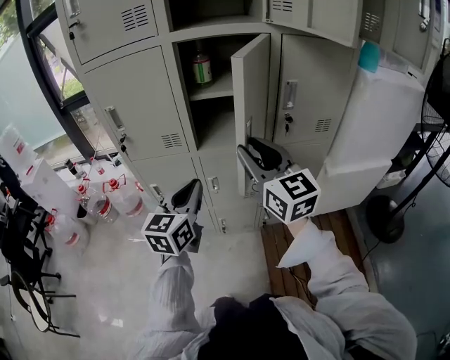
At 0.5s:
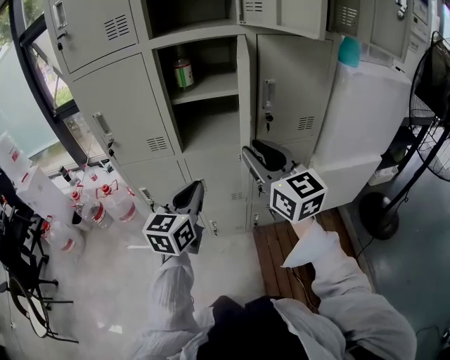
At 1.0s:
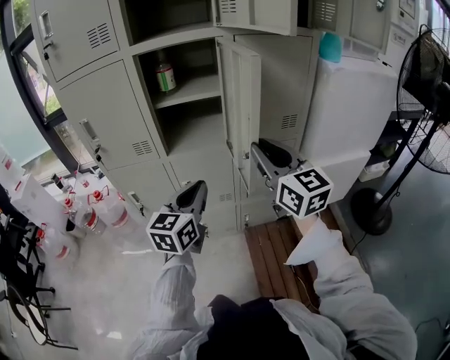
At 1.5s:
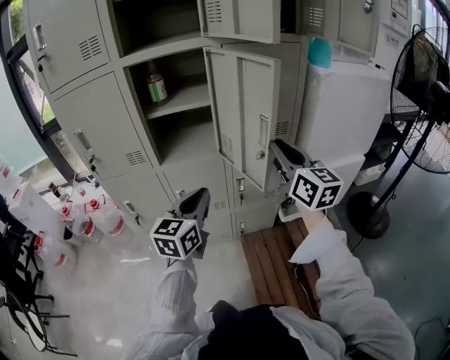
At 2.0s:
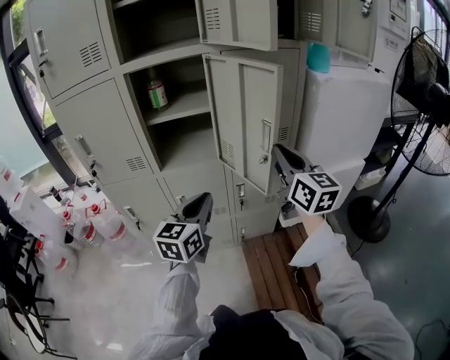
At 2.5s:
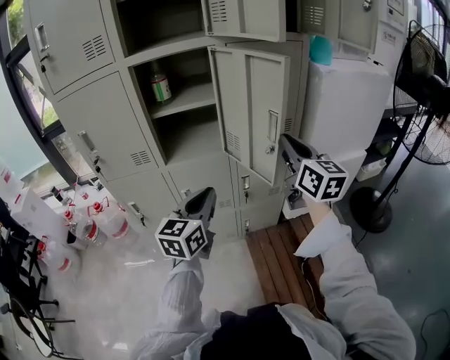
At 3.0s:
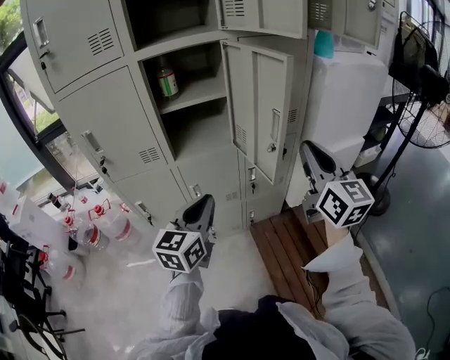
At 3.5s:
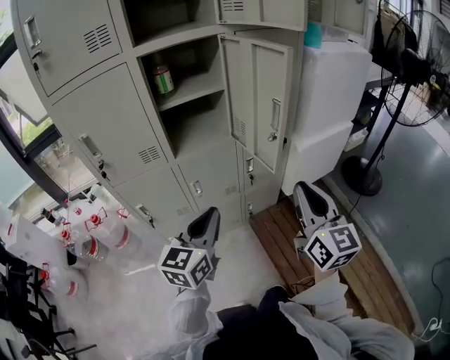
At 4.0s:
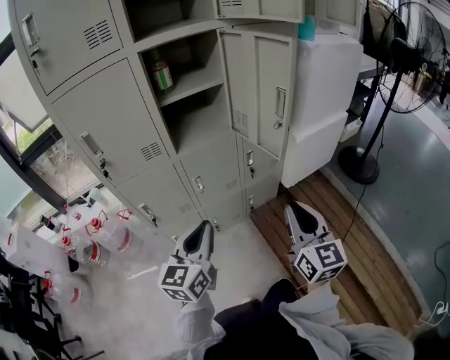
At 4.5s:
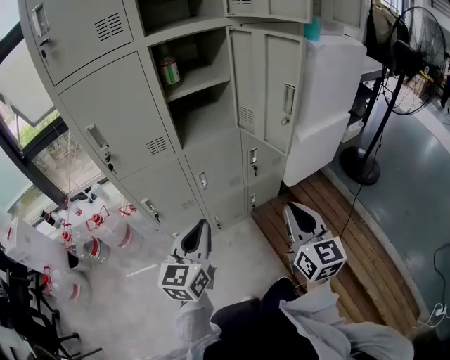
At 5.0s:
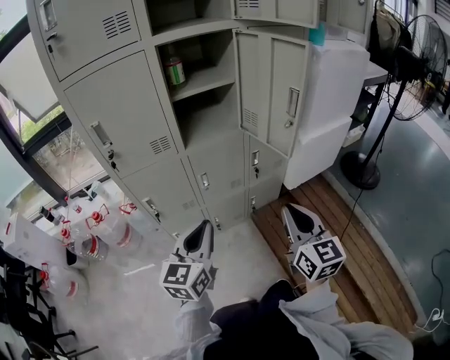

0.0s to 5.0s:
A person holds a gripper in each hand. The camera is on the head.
0.0s to 2.5s: The left gripper travels to the right by about 15 cm. The right gripper shifts roughly 20 cm to the right, changes its angle by roughly 20 degrees, and closes its fingers.
2.5s to 5.0s: The left gripper heads backward and to the left, covering roughly 20 cm, while the right gripper is displaced backward, to the left and downward by approximately 30 cm.

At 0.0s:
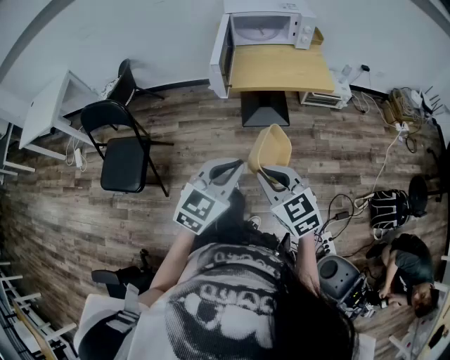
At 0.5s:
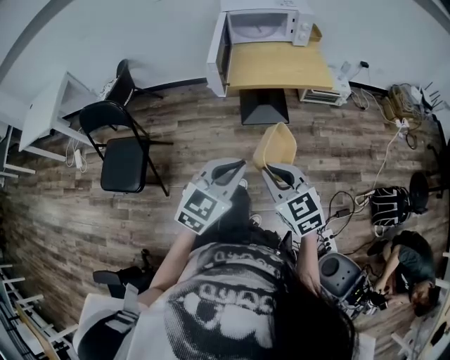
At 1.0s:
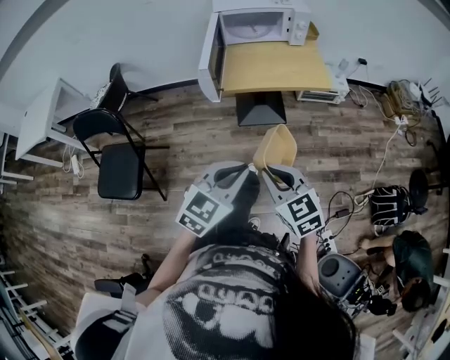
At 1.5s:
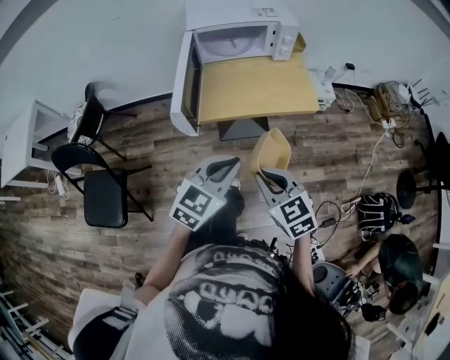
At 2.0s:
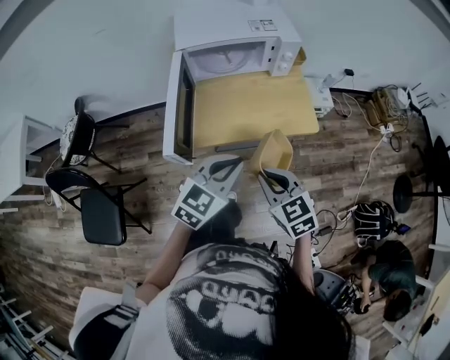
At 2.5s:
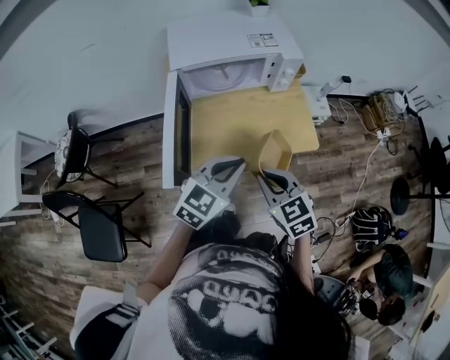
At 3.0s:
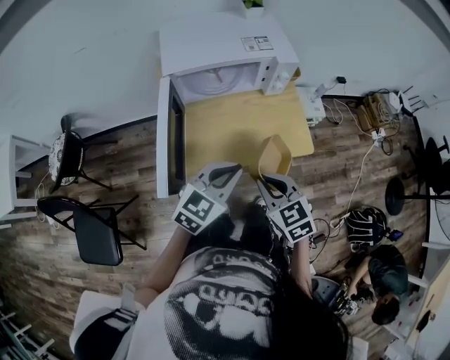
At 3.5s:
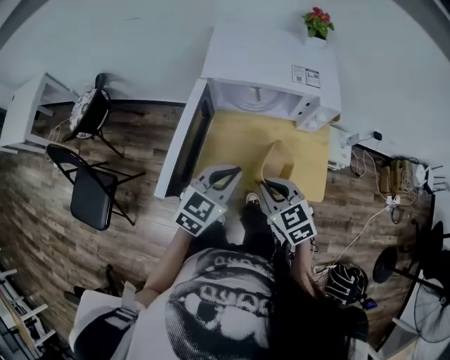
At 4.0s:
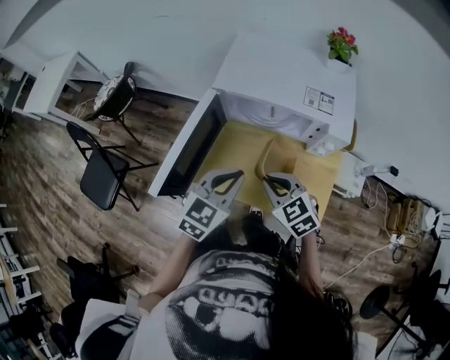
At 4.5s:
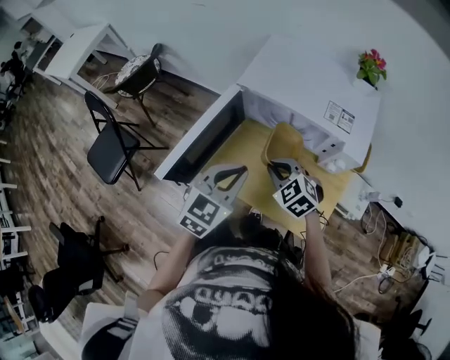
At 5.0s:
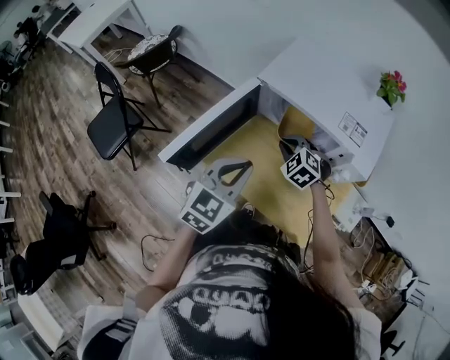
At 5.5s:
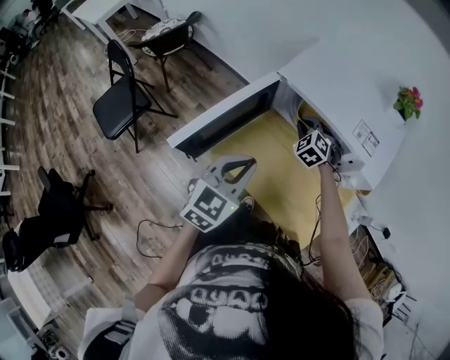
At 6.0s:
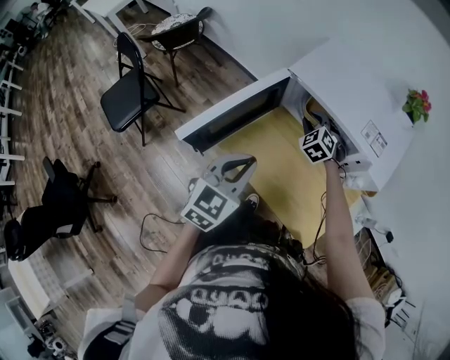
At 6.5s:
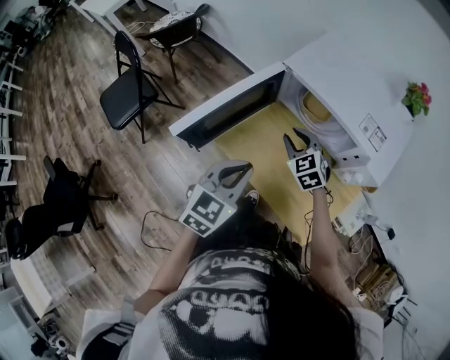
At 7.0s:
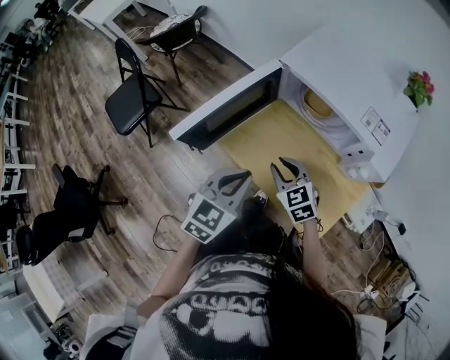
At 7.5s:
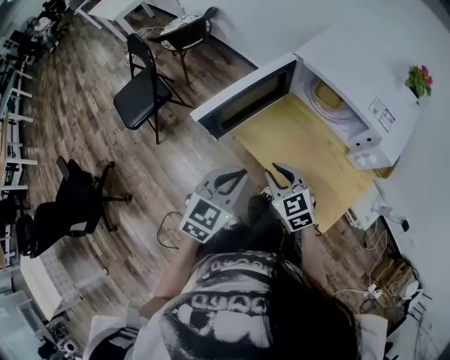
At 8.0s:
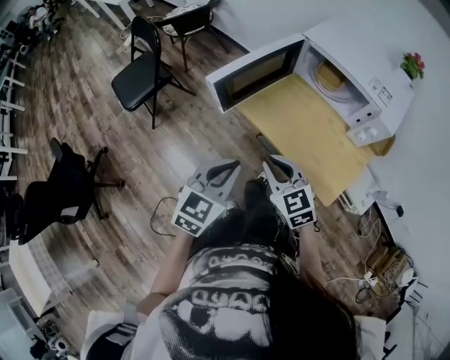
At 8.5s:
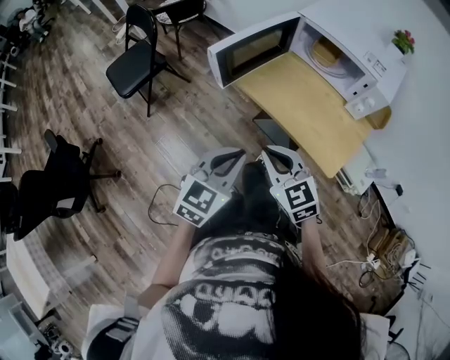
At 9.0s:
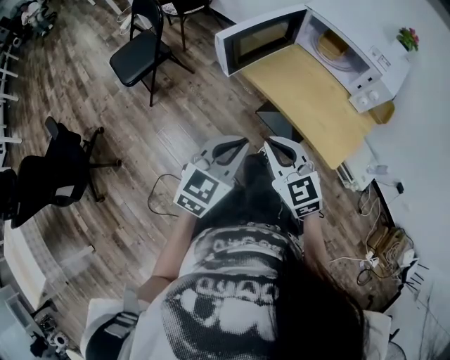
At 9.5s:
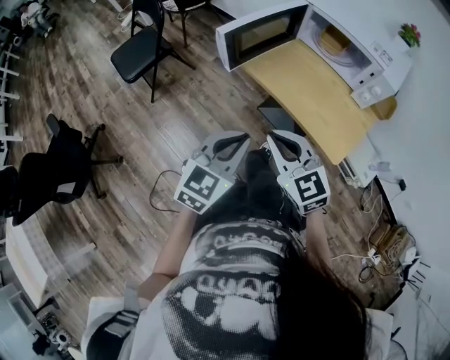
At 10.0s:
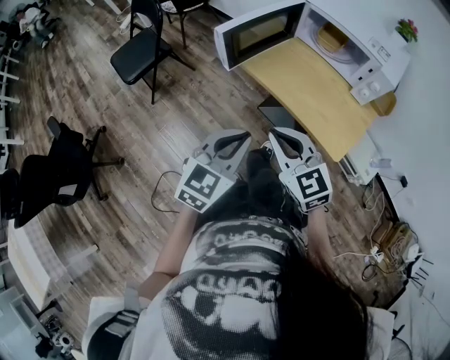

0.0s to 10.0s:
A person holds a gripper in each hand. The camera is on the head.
0.0s to 2.0s: Both grippers travel together forward, roughly 35 cm.
2.0s to 4.0s: The right gripper ends up roughly 25 cm from where it was, and swivels some 30 degrees, while the left gripper shifts by about 20 cm, and rotates approximately 30 degrees.
4.0s to 6.0s: The left gripper moves to the left, approximately 5 cm, and swivels about 20 degrees. The right gripper goes some 20 cm forward, and turns by some 40 degrees.
6.0s to 8.0s: The left gripper travels backward and to the left by roughly 20 cm. The right gripper moves backward and to the left, approximately 40 cm, and turns by roughly 40 degrees.
8.0s to 10.0s: The right gripper heads backward and upward, covering approximately 10 cm; the left gripper heads backward, covering some 10 cm.

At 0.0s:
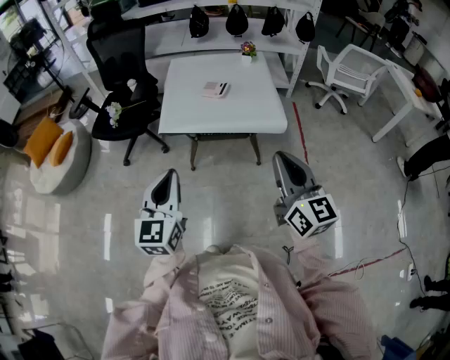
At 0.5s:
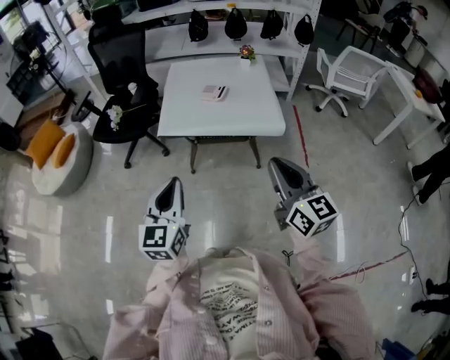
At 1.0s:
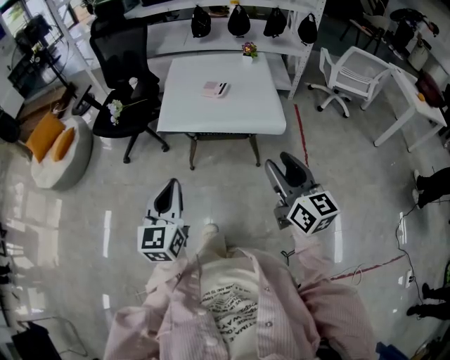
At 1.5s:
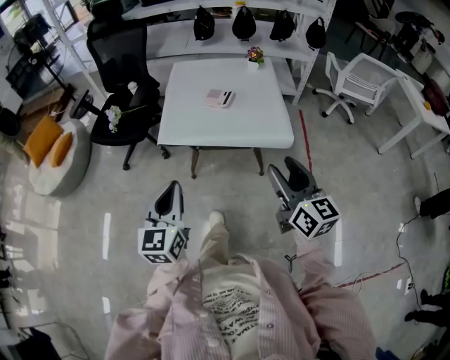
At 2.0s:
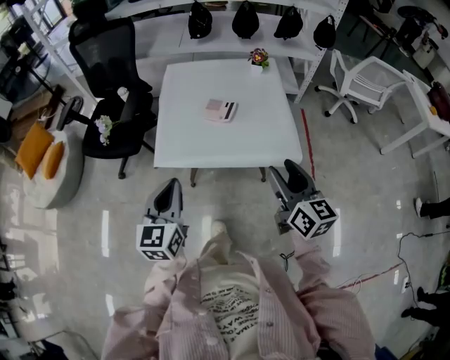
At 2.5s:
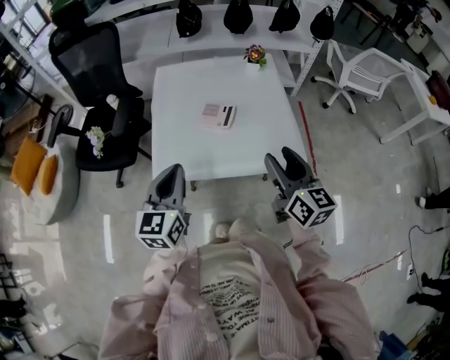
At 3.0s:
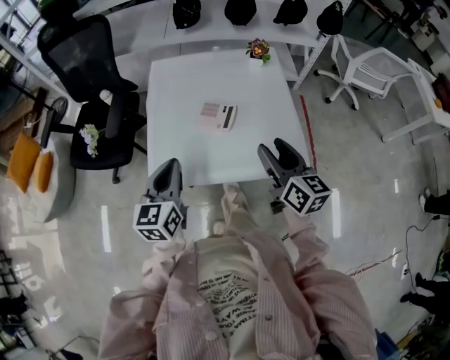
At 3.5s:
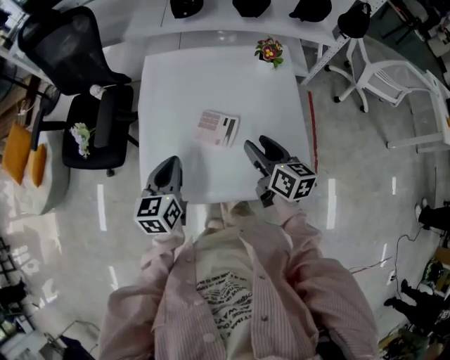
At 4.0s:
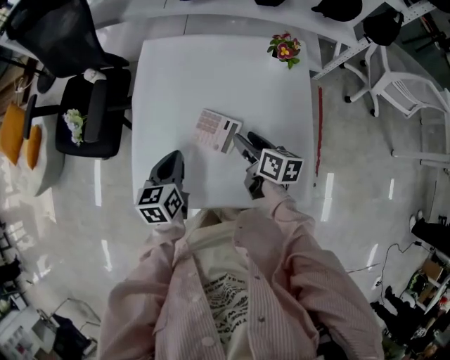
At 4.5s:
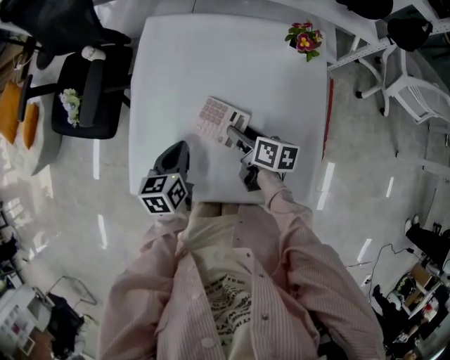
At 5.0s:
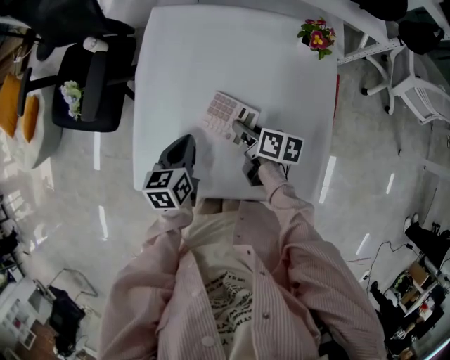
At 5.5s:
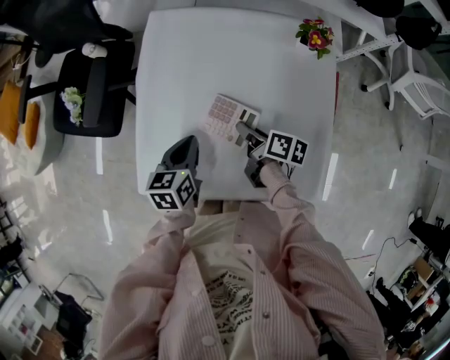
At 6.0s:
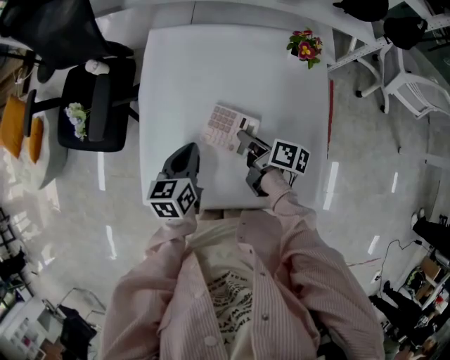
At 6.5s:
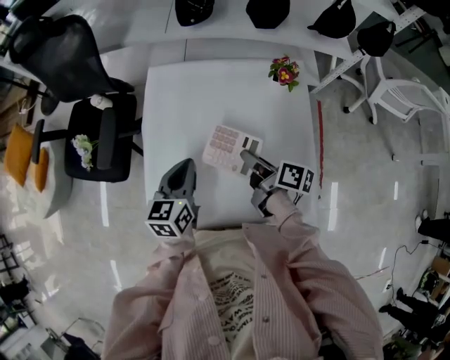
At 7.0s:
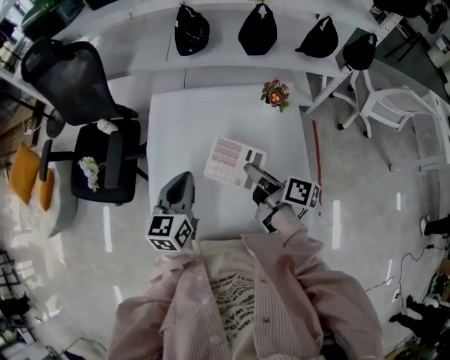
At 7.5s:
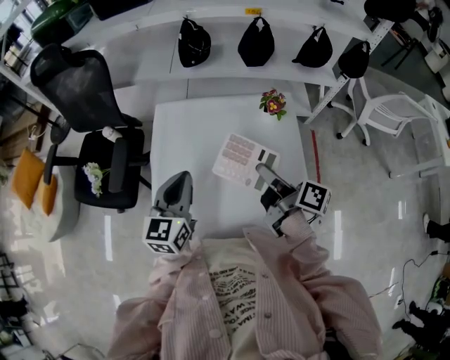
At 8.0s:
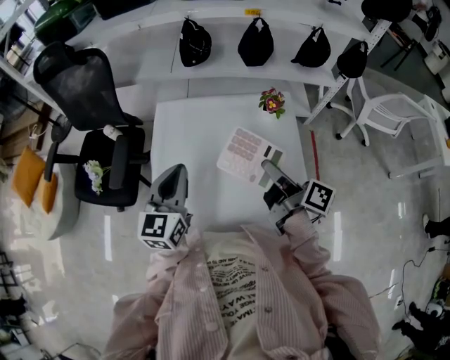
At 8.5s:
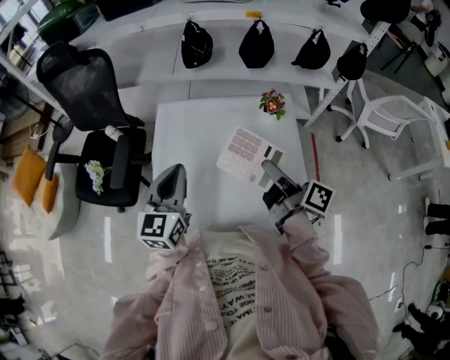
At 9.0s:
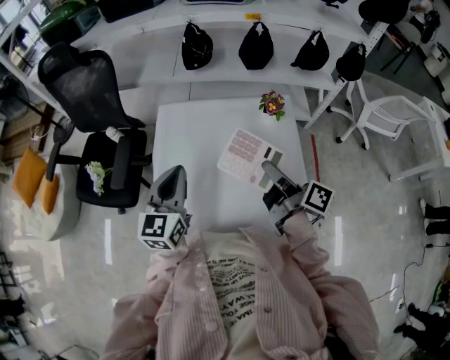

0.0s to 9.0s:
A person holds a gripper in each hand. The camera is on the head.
0.0s to 2.0s: Both grippers move forward, about 20 cm. The right gripper opens up.
2.0s to 4.5s: The grippers both shift forward and downward by some 40 cm. The left gripper swivels about 30 degrees. Meanwhile the right gripper rotates approximately 50 degrees.
4.5s to 7.0s: Both grippers travel together upward, roughly 15 cm. The left gripper swivels approximately 30 degrees, while the right gripper changes its angle by some 30 degrees, and closes its fingers.
7.0s to 9.0s: The grippers both shift upward by roughly 10 cm.

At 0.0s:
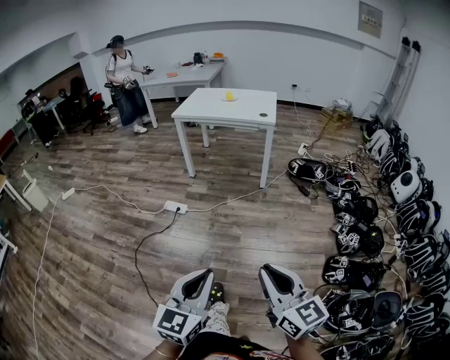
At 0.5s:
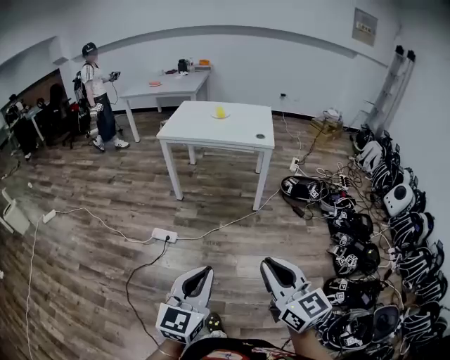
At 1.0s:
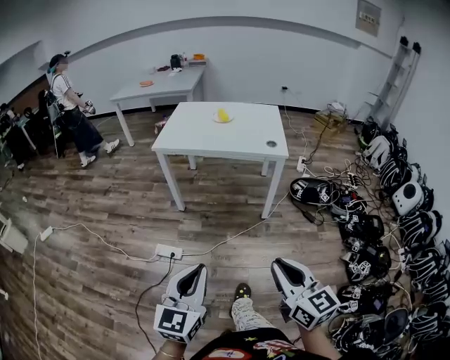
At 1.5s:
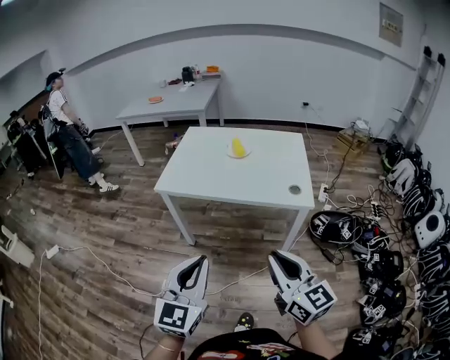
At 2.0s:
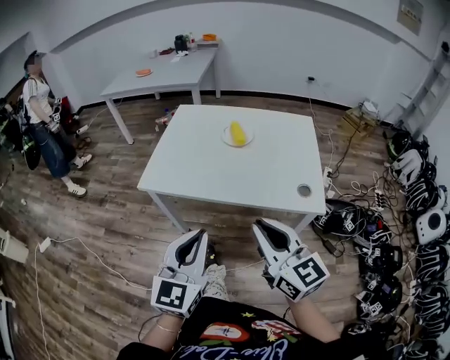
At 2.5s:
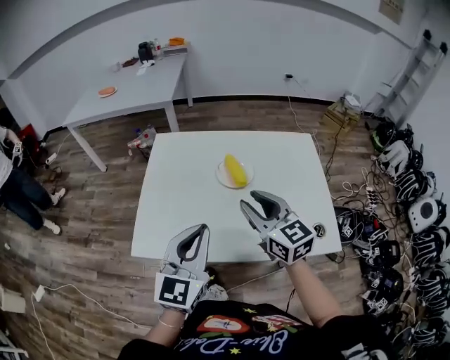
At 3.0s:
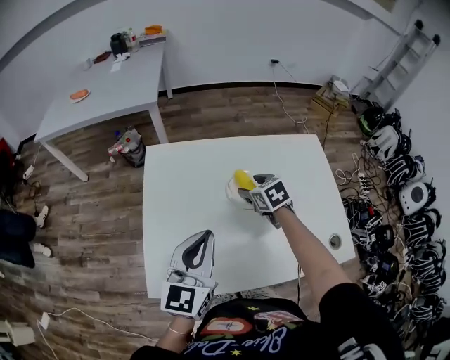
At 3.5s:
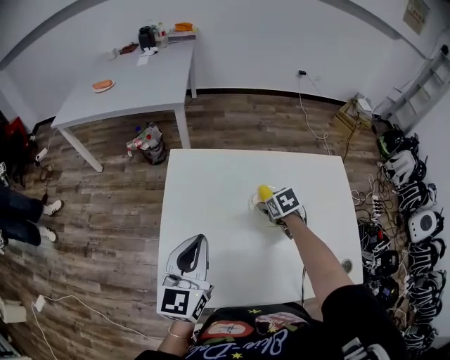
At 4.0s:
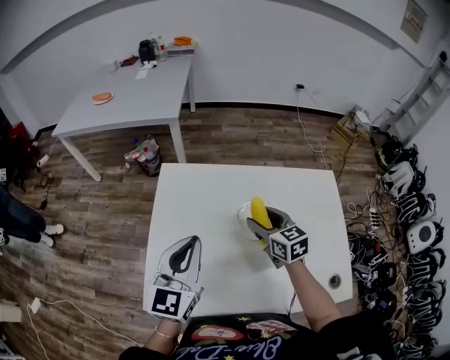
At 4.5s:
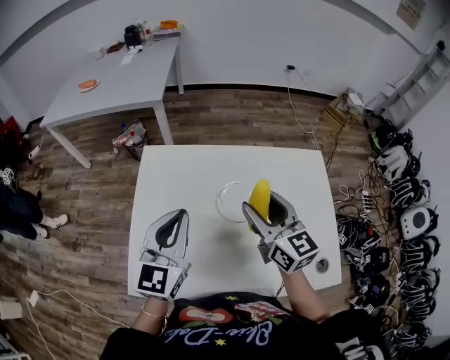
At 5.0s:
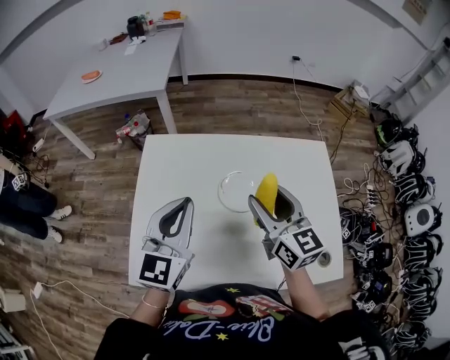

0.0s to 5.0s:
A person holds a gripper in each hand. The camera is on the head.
0.0s to 2.5s: The two grippers travel together, forward, about 1.5 m. The right gripper opens up.
2.5s to 5.0s: Both grippers travel together forward, roughly 20 cm. The right gripper opens.
